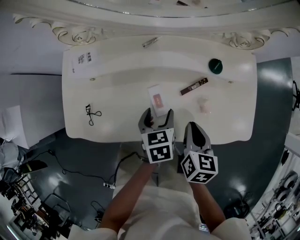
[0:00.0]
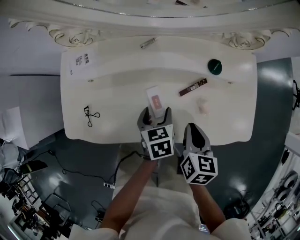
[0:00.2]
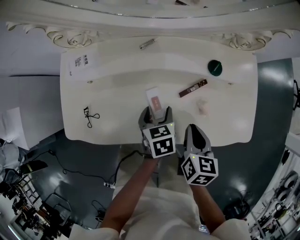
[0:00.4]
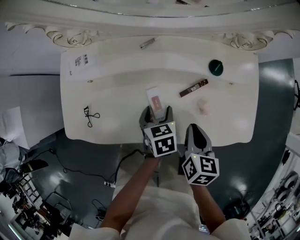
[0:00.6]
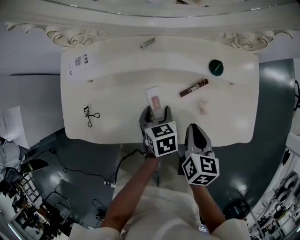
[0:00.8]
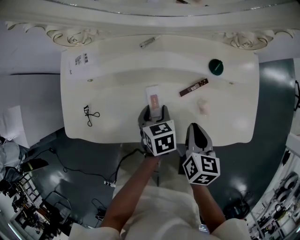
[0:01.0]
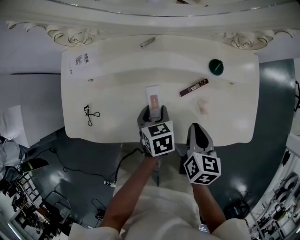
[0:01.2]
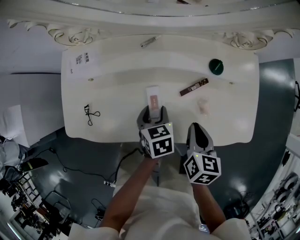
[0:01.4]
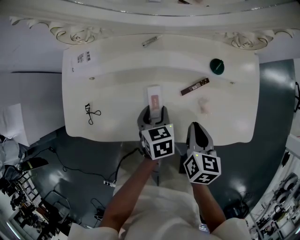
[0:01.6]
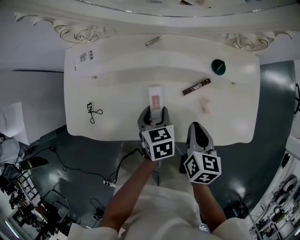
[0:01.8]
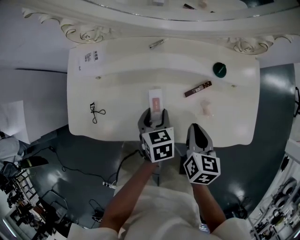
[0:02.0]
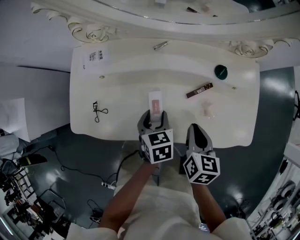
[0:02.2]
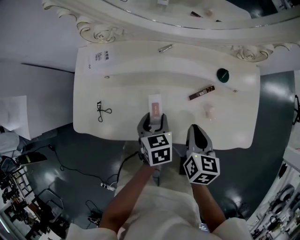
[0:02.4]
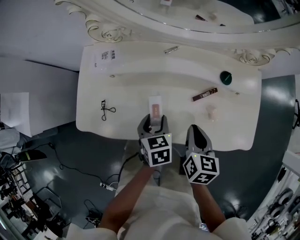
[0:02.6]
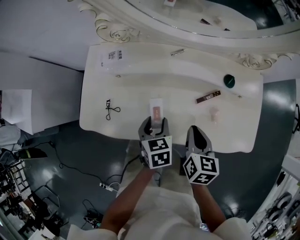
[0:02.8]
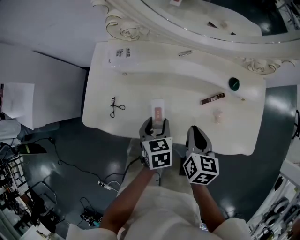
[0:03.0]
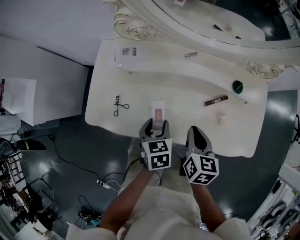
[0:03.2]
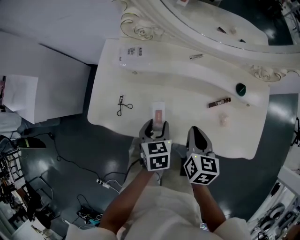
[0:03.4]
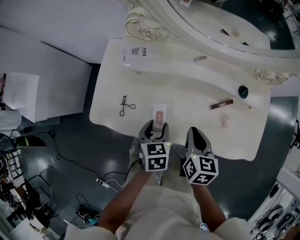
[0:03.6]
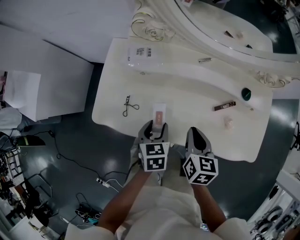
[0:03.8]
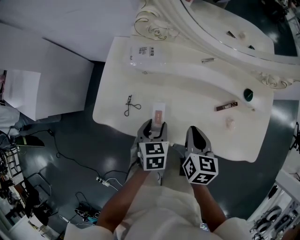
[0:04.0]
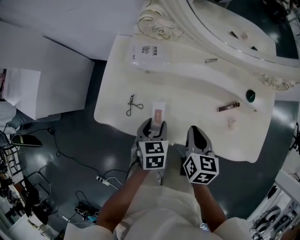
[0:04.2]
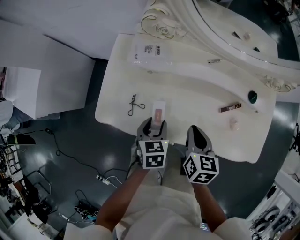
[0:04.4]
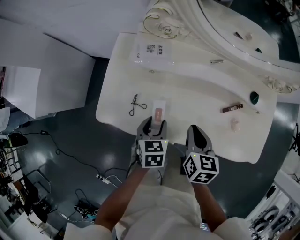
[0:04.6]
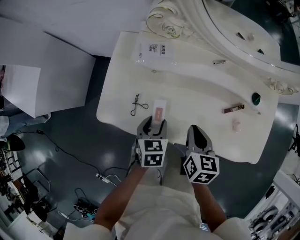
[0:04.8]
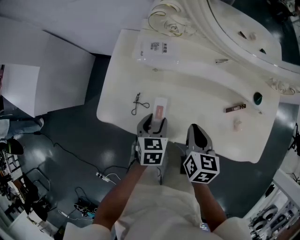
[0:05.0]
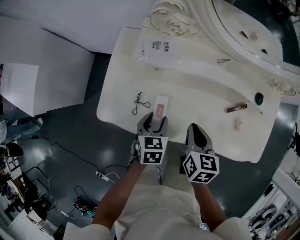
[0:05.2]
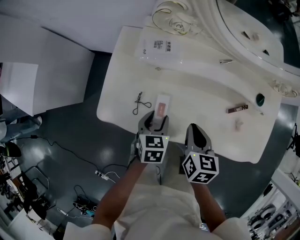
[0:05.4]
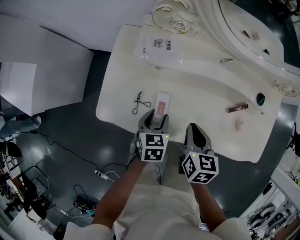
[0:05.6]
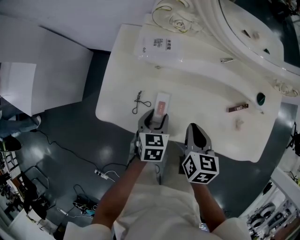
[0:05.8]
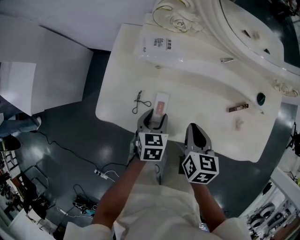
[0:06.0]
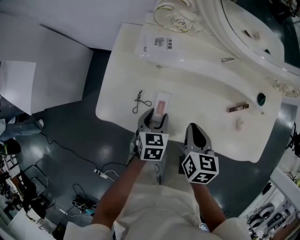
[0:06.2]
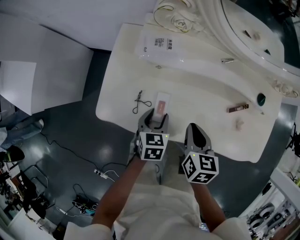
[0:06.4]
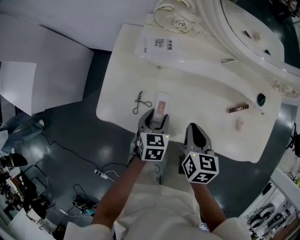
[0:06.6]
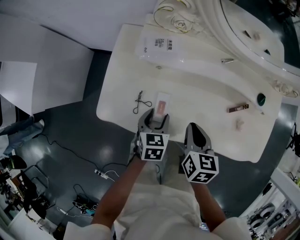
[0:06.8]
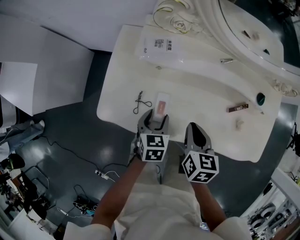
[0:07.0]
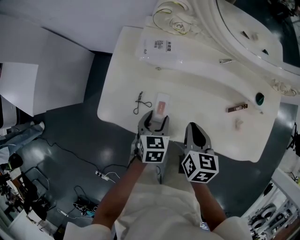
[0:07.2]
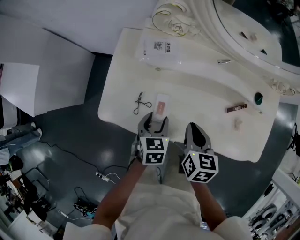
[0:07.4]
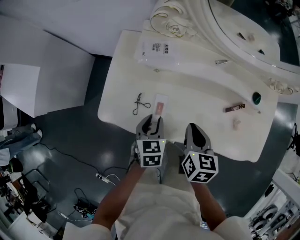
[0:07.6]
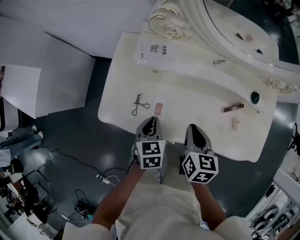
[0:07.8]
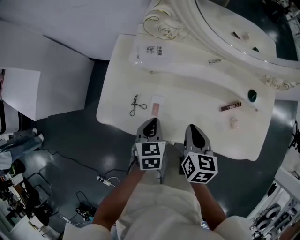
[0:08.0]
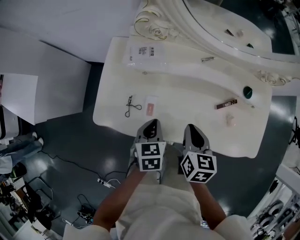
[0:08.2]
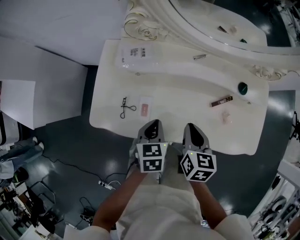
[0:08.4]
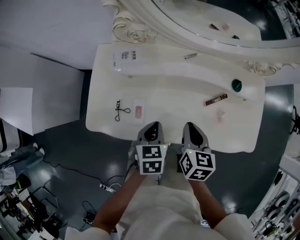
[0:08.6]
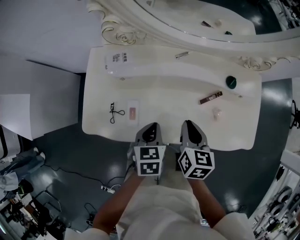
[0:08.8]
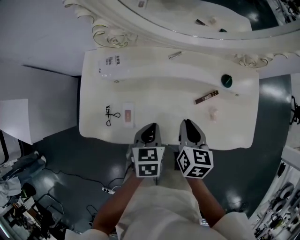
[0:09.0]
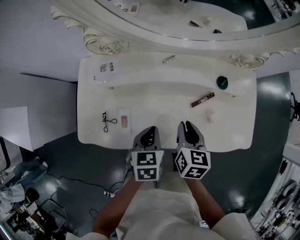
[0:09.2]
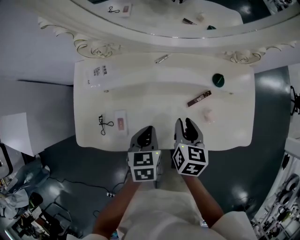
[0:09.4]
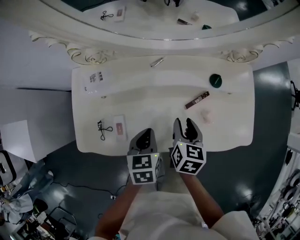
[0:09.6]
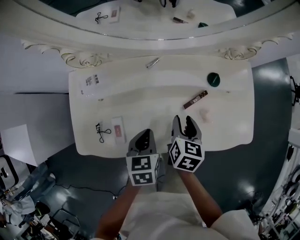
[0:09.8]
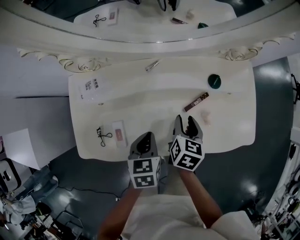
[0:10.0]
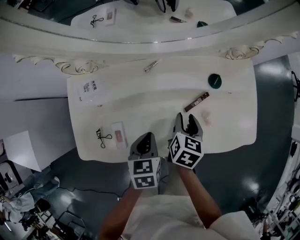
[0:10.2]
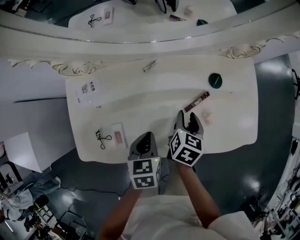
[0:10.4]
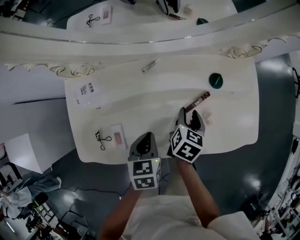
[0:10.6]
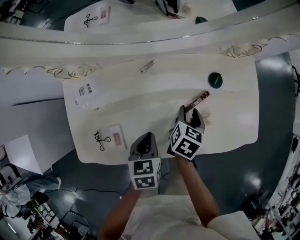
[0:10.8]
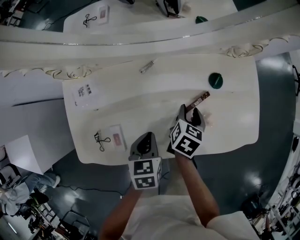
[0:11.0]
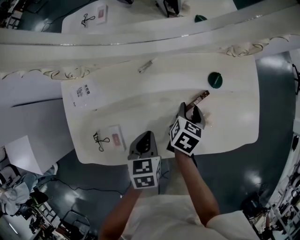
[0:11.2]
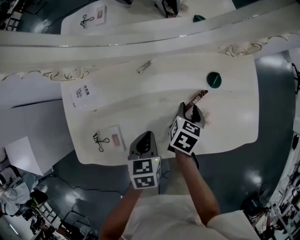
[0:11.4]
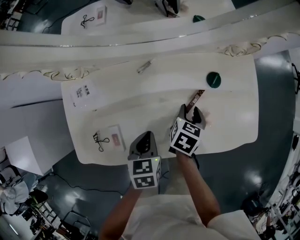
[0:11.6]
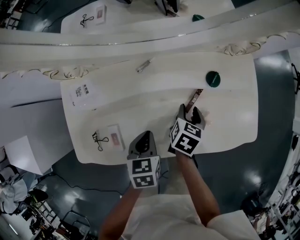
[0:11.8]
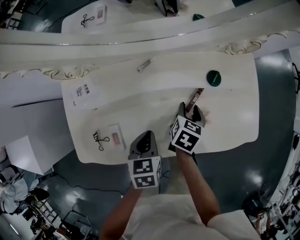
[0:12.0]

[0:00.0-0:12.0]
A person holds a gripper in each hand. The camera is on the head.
0:00.0 to 0:01.6: The grippers move only a little.
0:01.6 to 0:03.0: Both grippers move to the left, some 10 cm.
0:03.0 to 0:04.4: The two grippers go some 10 cm to the left.
0:04.4 to 0:07.6: The grippers stay close to where they were, moving slightly.
0:07.6 to 0:09.0: The grippers both shift to the right by about 10 cm. The left gripper closes its fingers.
0:09.0 to 0:10.4: The right gripper travels forward, downward and to the right by some 10 cm, rotates roughly 20 degrees, and opens up.
0:10.4 to 0:12.0: The grippers stay close to where they were, moving slightly.

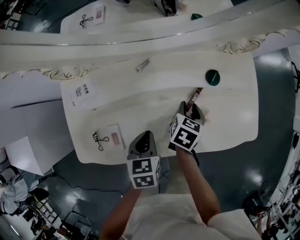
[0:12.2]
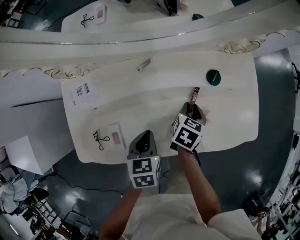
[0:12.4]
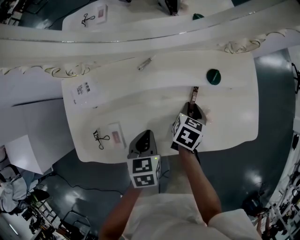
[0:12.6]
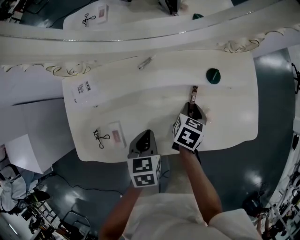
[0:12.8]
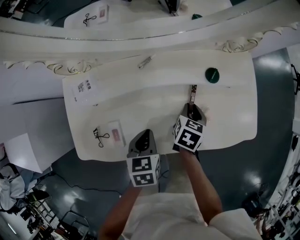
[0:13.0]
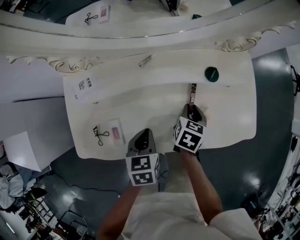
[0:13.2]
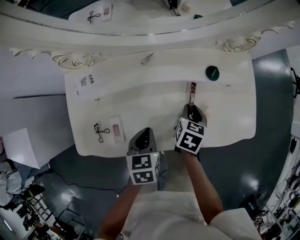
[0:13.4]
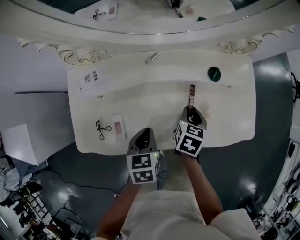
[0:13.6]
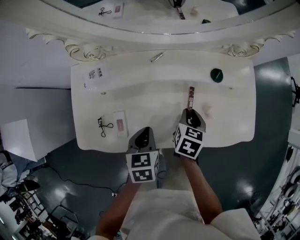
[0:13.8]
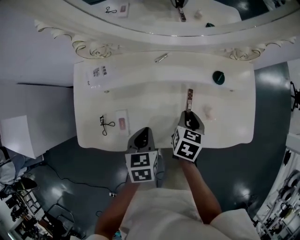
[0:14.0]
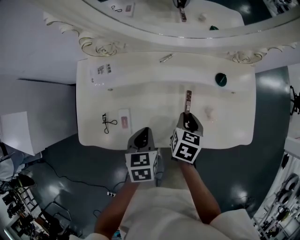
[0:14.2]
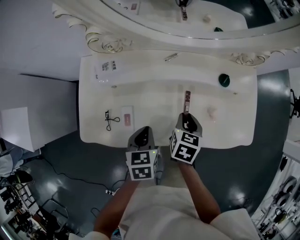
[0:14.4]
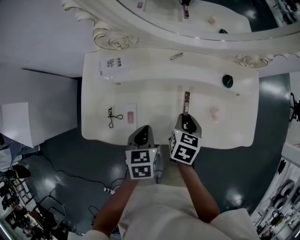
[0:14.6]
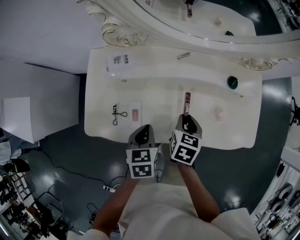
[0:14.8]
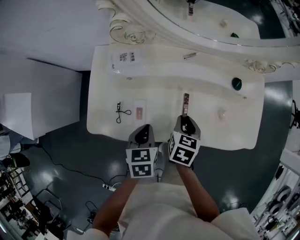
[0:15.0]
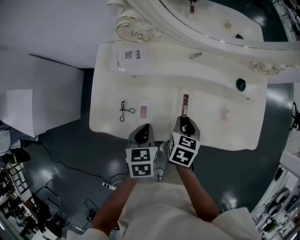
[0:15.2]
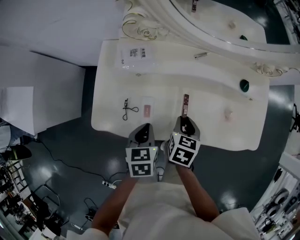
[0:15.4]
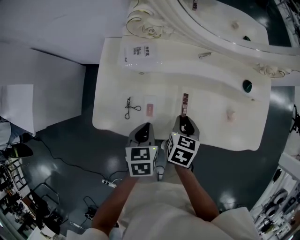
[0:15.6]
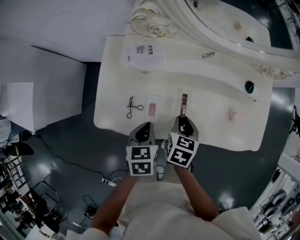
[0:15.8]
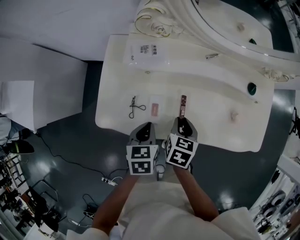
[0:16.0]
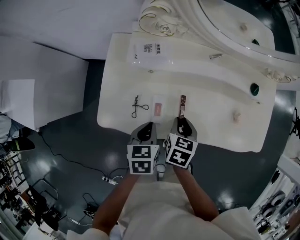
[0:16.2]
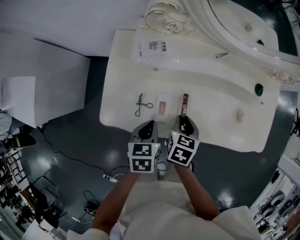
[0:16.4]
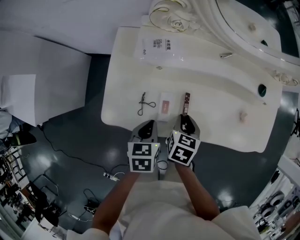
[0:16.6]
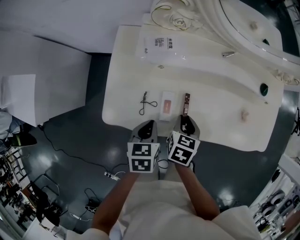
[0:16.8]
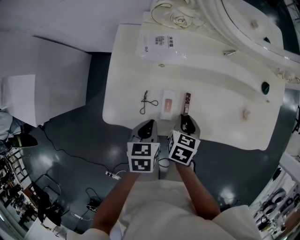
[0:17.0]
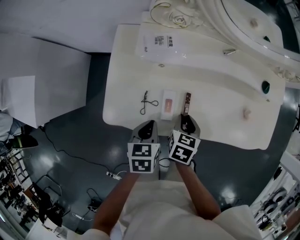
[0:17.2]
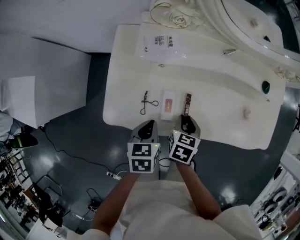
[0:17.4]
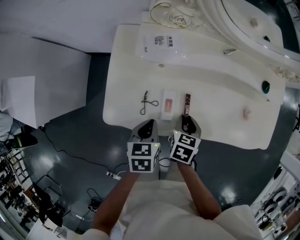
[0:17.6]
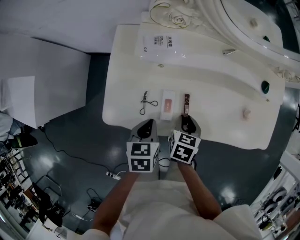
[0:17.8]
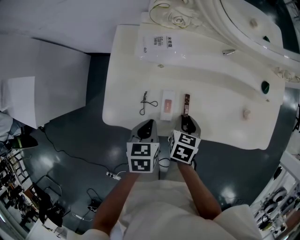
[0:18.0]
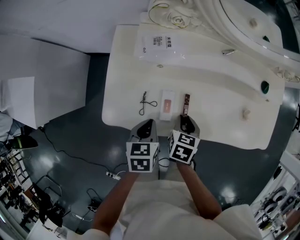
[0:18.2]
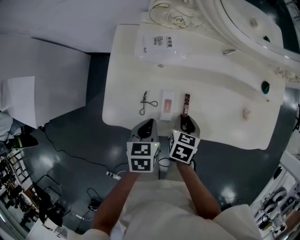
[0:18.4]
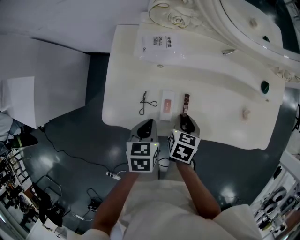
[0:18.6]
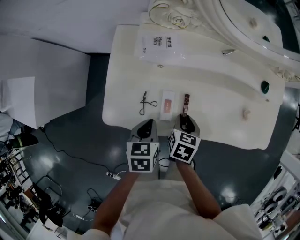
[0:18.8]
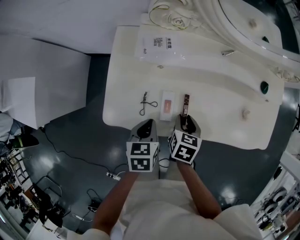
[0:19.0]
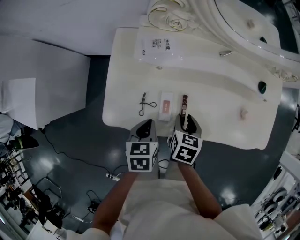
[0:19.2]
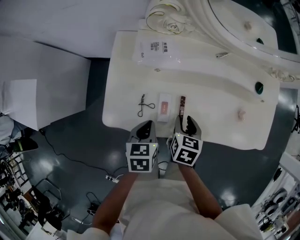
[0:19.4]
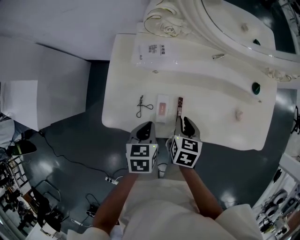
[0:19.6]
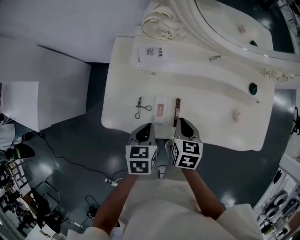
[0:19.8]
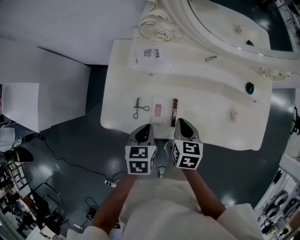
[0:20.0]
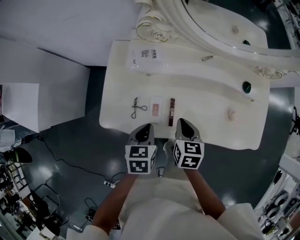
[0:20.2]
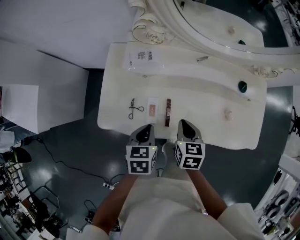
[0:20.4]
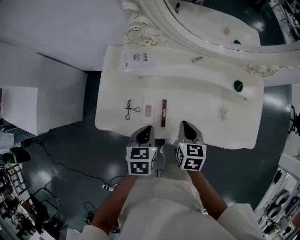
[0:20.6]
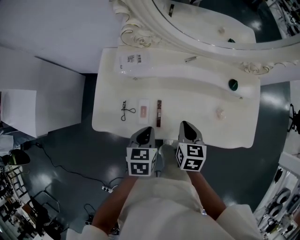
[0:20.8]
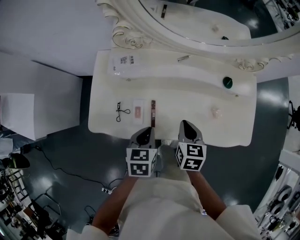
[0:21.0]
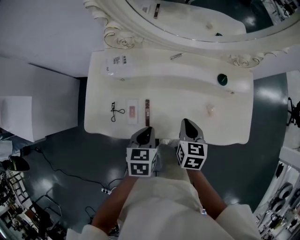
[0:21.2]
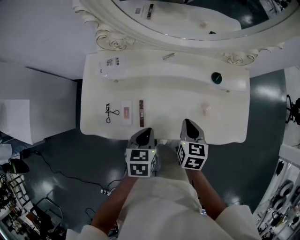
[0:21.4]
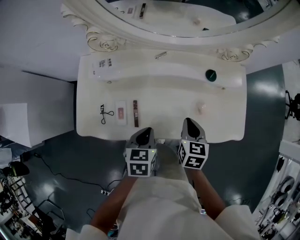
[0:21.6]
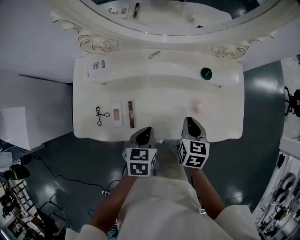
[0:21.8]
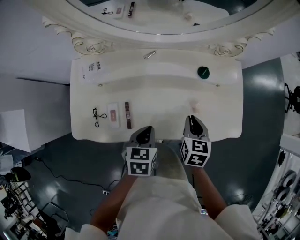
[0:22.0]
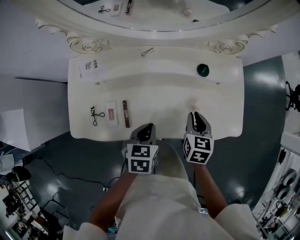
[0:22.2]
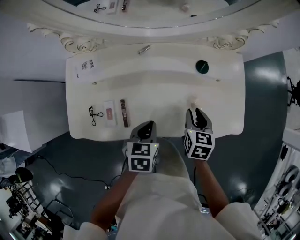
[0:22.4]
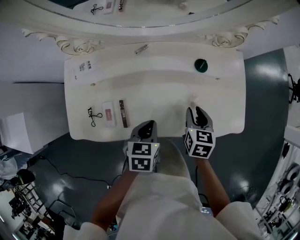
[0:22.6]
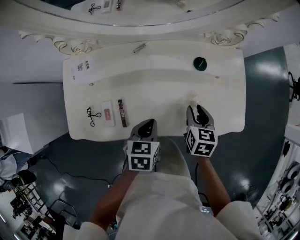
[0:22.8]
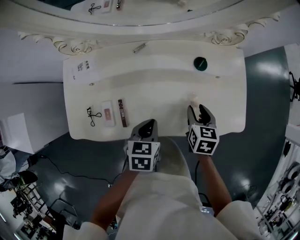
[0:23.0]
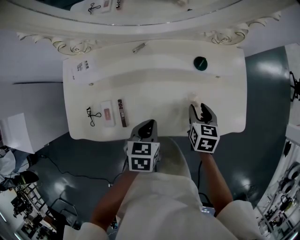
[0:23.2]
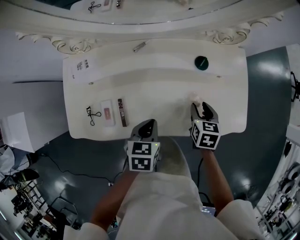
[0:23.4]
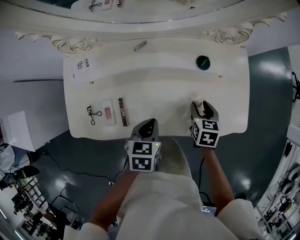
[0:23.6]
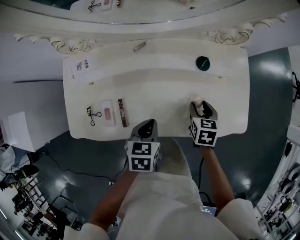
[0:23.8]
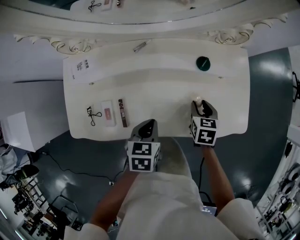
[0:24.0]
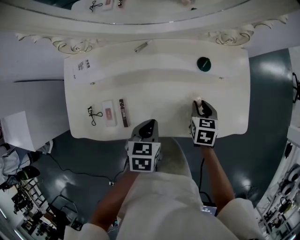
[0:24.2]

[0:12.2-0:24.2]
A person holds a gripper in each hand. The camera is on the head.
0:12.2 to 0:13.8: The right gripper shifts approximately 5 cm backward.
0:13.8 to 0:15.2: The left gripper is displaced to the left by roughly 10 cm. The right gripper is displaced to the left and backward by approximately 15 cm.
0:15.2 to 0:16.6: The two grippers go about 5 cm to the left.
0:16.6 to 0:18.2: The grippers move only a little.
0:18.2 to 0:19.8: The right gripper heads upward, covering about 5 cm, and closes up.
0:19.8 to 0:21.2: Both grippers travel together to the right, roughly 15 cm.
0:21.2 to 0:22.6: Both grippers travel together to the right, some 10 cm. The right gripper opens its fingers.
0:22.6 to 0:24.2: The right gripper heads downward, covering some 5 cm.
